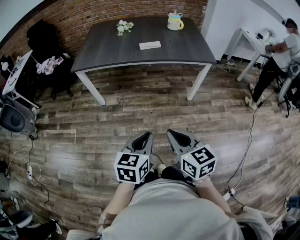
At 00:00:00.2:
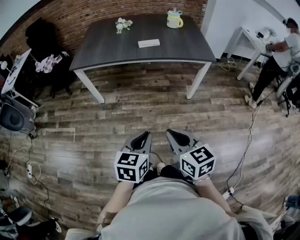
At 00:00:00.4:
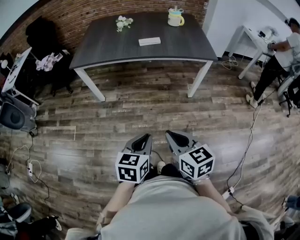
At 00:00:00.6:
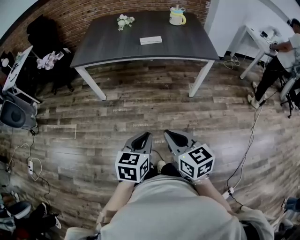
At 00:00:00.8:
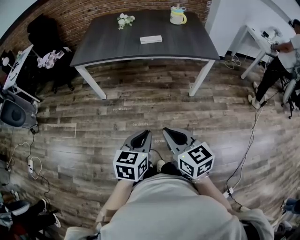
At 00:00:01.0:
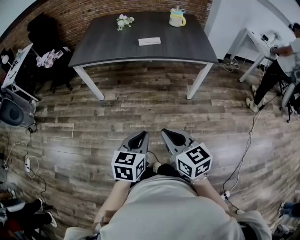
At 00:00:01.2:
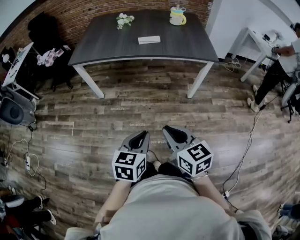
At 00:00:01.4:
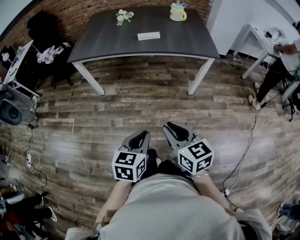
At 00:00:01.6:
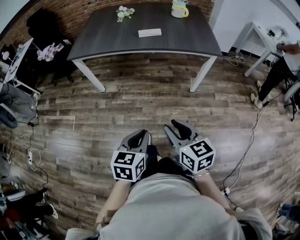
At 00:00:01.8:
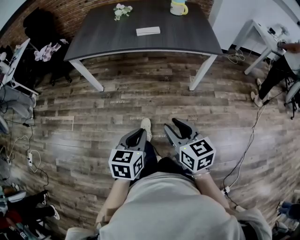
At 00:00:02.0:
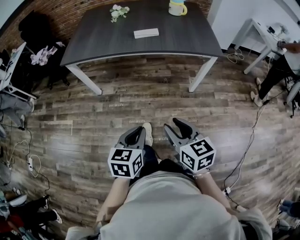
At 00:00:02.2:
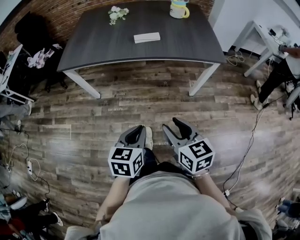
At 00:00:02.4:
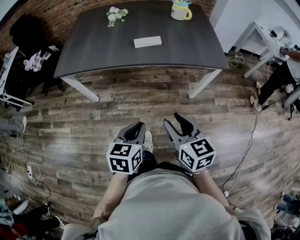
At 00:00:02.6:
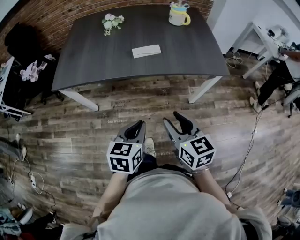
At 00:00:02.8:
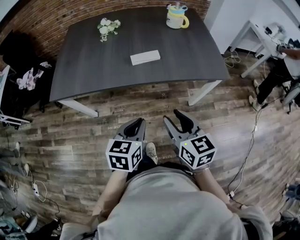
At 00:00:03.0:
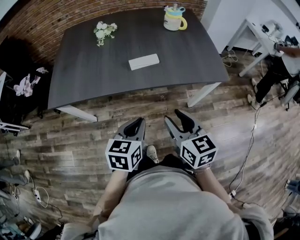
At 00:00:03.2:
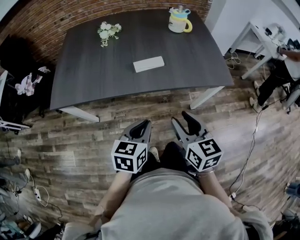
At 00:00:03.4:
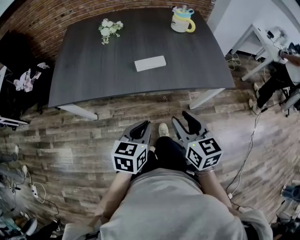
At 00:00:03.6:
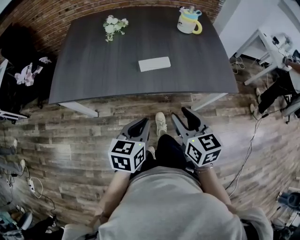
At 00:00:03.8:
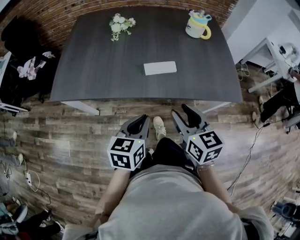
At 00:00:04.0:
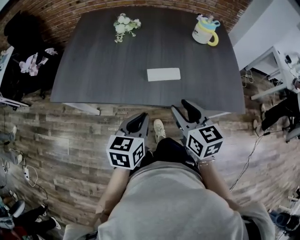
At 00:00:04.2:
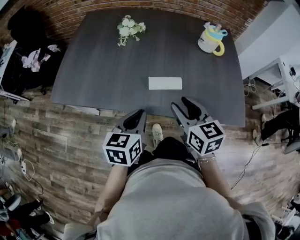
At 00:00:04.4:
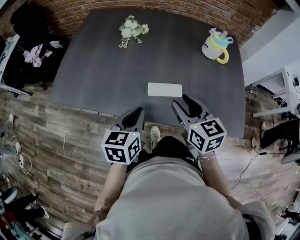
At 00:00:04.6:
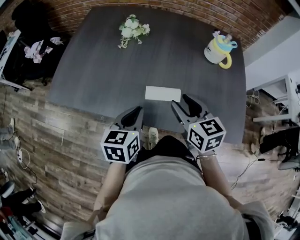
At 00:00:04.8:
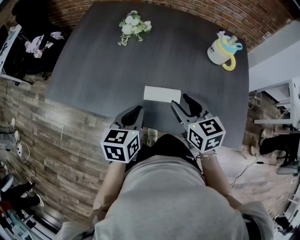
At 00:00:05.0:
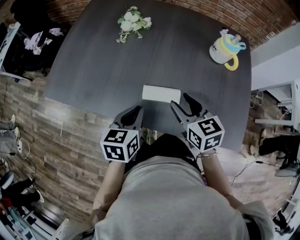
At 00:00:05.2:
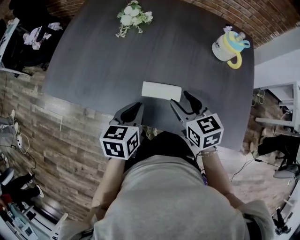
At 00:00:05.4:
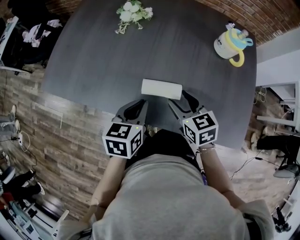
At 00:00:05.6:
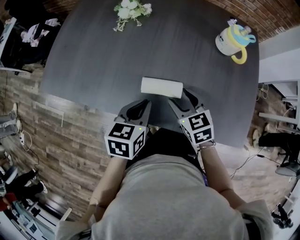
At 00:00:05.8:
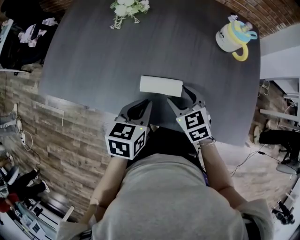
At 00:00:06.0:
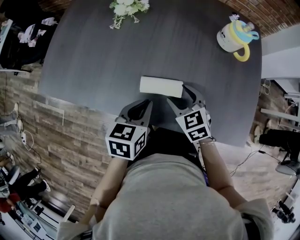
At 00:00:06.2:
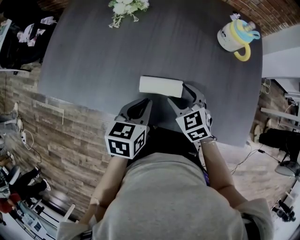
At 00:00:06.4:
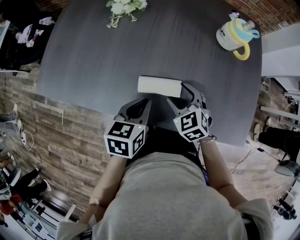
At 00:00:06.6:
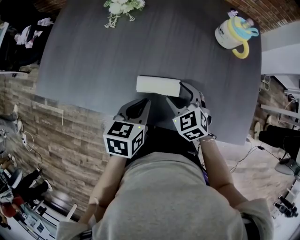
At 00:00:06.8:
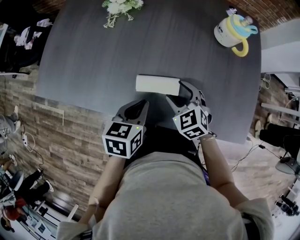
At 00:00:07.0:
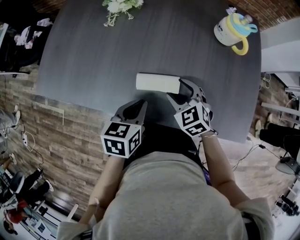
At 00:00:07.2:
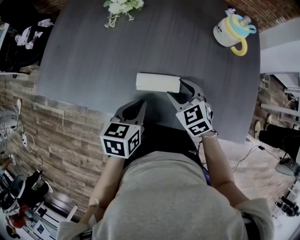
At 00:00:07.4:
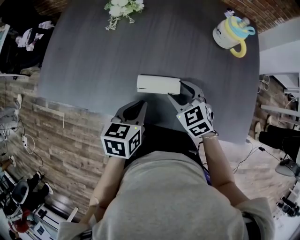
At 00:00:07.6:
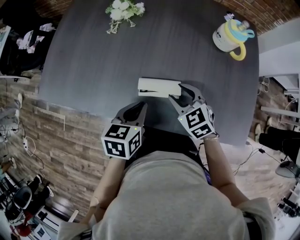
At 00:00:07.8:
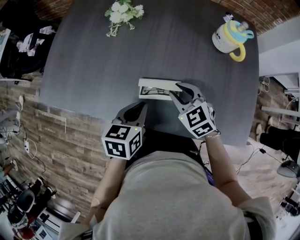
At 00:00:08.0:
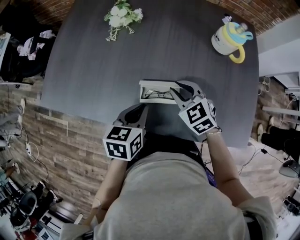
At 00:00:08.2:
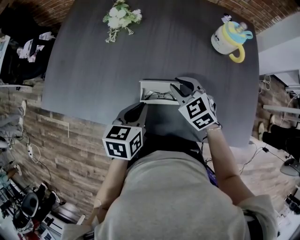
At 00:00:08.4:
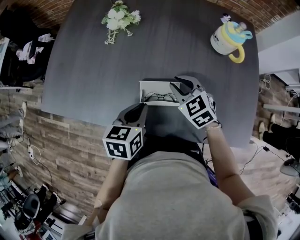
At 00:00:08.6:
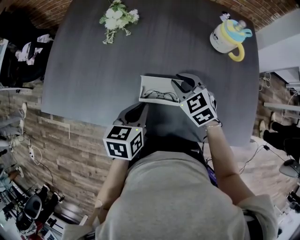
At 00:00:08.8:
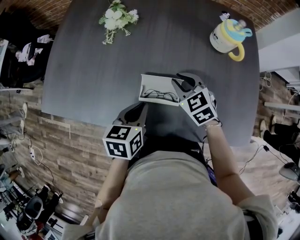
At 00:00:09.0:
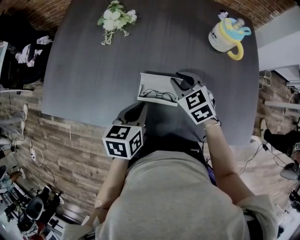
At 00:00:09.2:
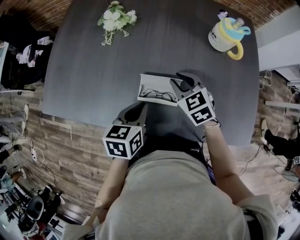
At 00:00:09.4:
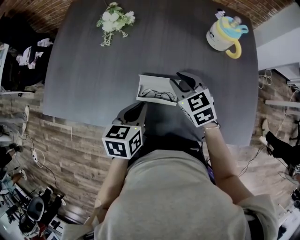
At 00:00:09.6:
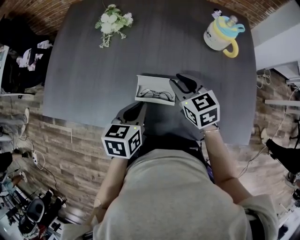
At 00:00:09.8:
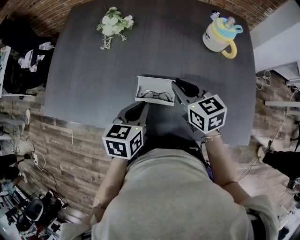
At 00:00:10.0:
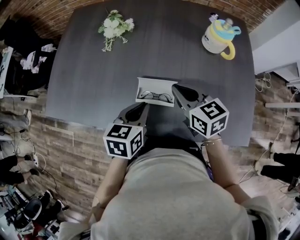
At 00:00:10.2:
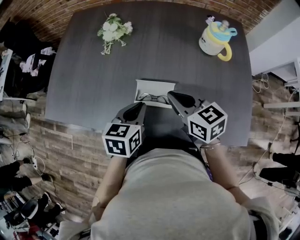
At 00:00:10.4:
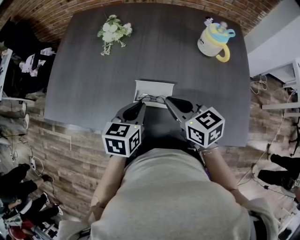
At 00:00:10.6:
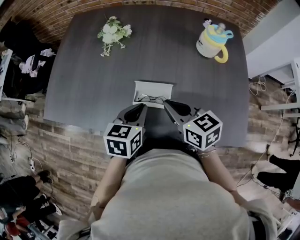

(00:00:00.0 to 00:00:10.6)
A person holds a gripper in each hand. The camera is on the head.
00:00:00.0 - 00:00:01.6: The right gripper goes roughly 5 cm to the right, and opens, while the left gripper shifts by some 5 cm.
00:00:01.6 - 00:00:03.0: Both grippers move forward, roughly 35 cm.
00:00:03.0 - 00:00:04.6: The grippers both shift forward by roughly 25 cm. The left gripper changes its angle by approximately 20 degrees. Meanwhile the right gripper turns by some 20 degrees.
00:00:04.6 - 00:00:06.0: The right gripper travels downward by some 15 cm, and changes its angle by about 30 degrees, while the left gripper heads to the right and downward, covering approximately 10 cm.
00:00:06.0 - 00:00:07.6: The grippers stay close to where they were, moving slightly.
00:00:07.6 - 00:00:09.0: The right gripper goes about 10 cm forward, and closes its fingers.
00:00:09.0 - 00:00:10.6: The right gripper travels backward and upward by approximately 10 cm, and changes its angle by approximately 30 degrees.

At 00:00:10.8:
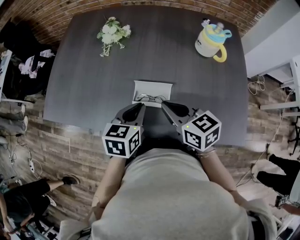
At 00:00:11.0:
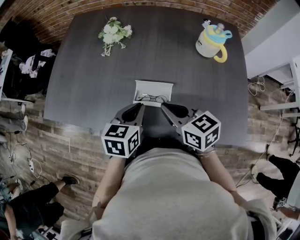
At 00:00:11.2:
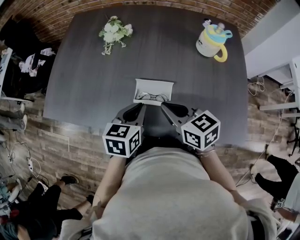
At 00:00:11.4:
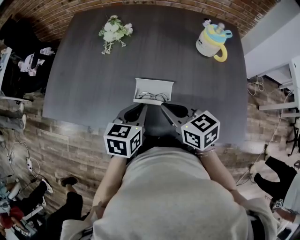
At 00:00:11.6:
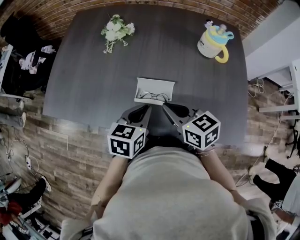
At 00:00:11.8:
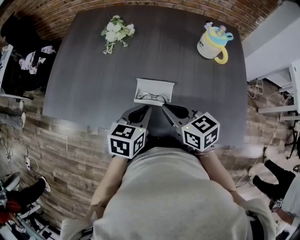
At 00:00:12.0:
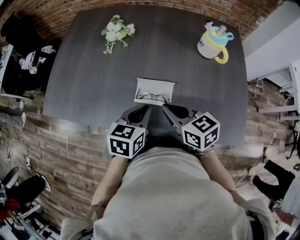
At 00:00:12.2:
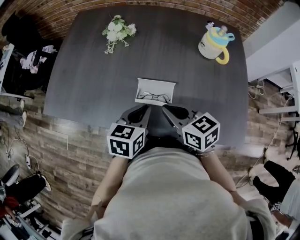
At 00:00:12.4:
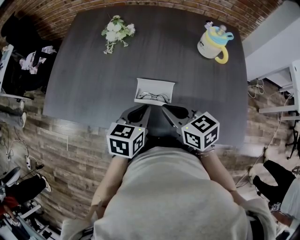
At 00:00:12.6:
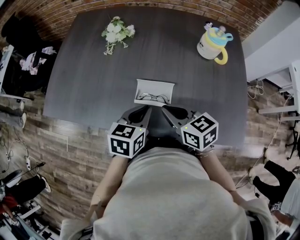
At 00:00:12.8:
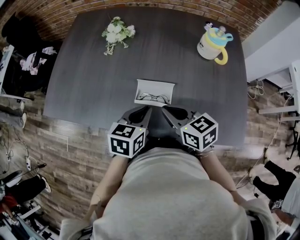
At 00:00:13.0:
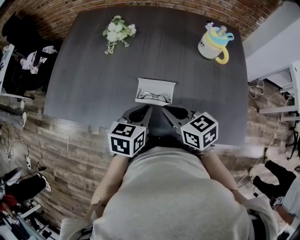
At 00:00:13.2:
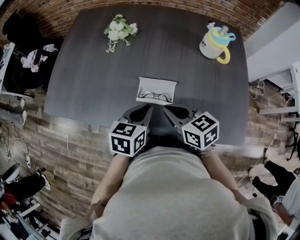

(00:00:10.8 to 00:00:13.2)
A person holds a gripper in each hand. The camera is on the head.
00:00:10.8 - 00:00:12.0: The grippers stay close to where they were, moving slightly.
00:00:12.0 - 00:00:13.2: Neither gripper changes place.

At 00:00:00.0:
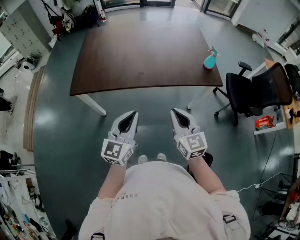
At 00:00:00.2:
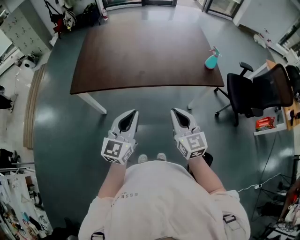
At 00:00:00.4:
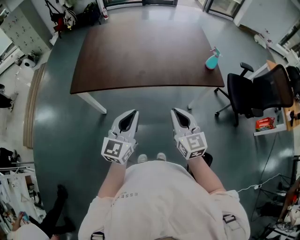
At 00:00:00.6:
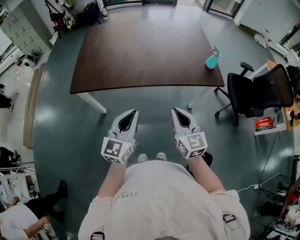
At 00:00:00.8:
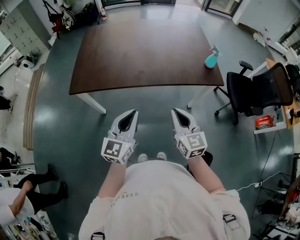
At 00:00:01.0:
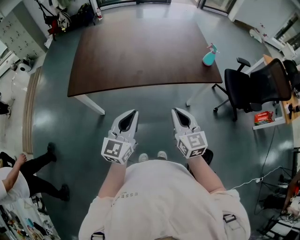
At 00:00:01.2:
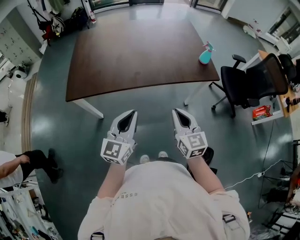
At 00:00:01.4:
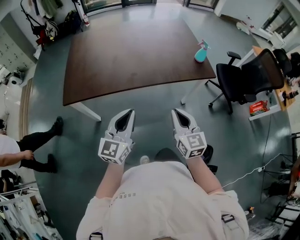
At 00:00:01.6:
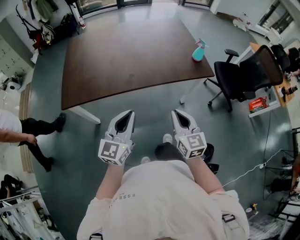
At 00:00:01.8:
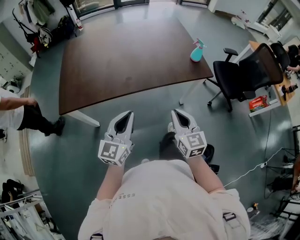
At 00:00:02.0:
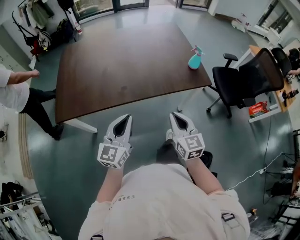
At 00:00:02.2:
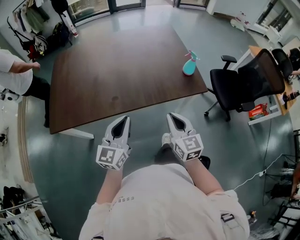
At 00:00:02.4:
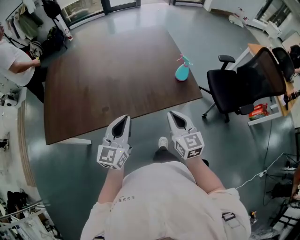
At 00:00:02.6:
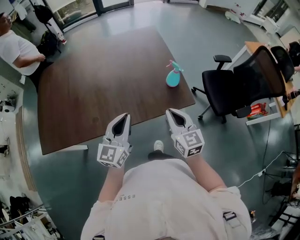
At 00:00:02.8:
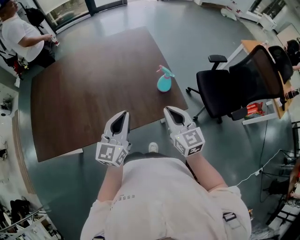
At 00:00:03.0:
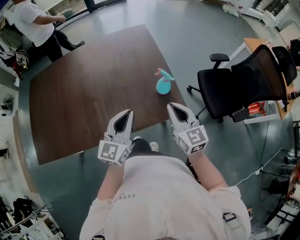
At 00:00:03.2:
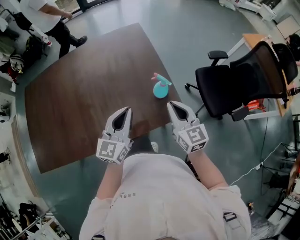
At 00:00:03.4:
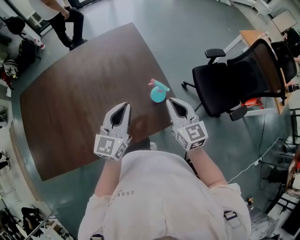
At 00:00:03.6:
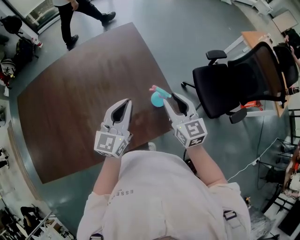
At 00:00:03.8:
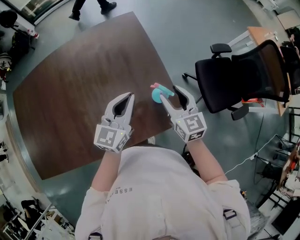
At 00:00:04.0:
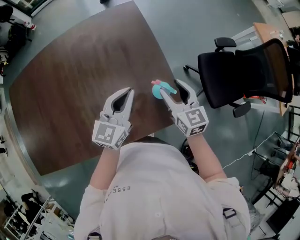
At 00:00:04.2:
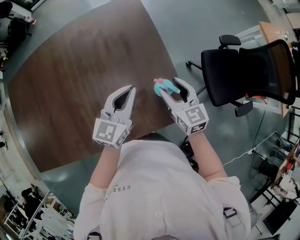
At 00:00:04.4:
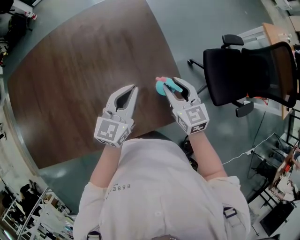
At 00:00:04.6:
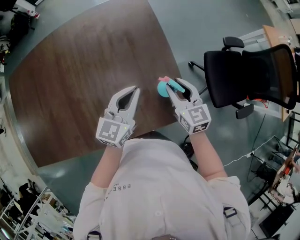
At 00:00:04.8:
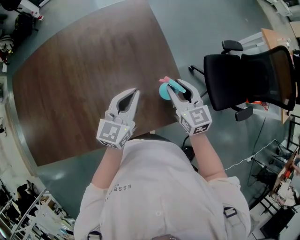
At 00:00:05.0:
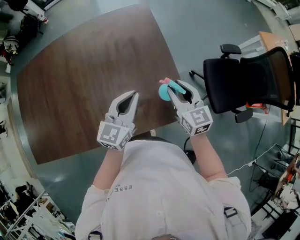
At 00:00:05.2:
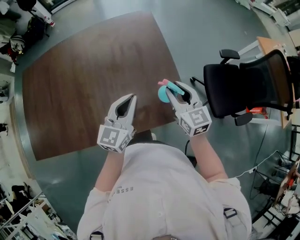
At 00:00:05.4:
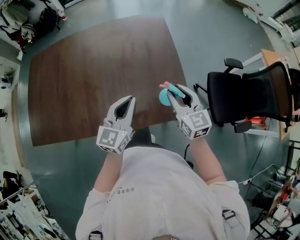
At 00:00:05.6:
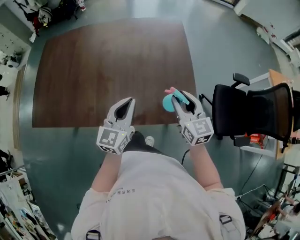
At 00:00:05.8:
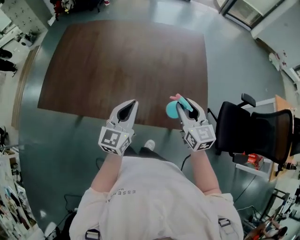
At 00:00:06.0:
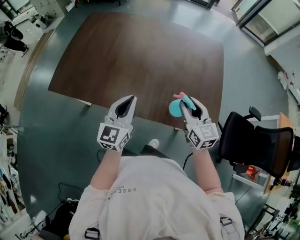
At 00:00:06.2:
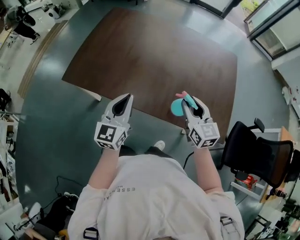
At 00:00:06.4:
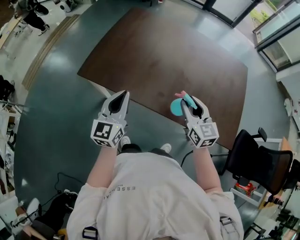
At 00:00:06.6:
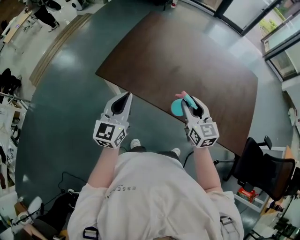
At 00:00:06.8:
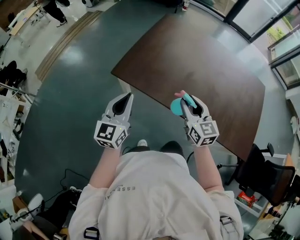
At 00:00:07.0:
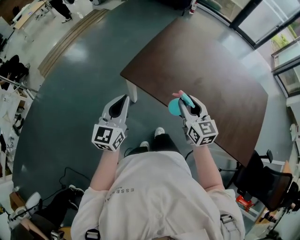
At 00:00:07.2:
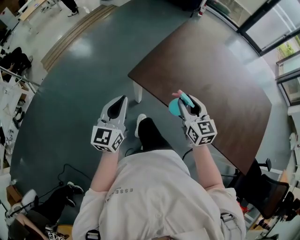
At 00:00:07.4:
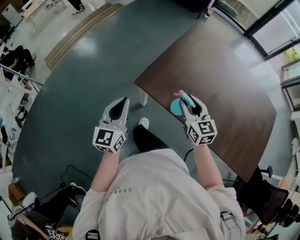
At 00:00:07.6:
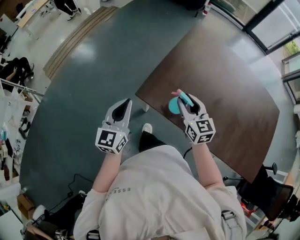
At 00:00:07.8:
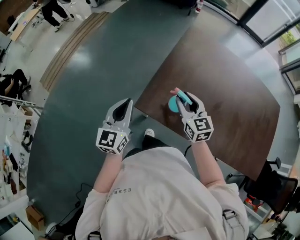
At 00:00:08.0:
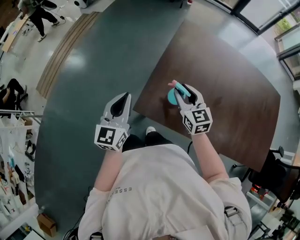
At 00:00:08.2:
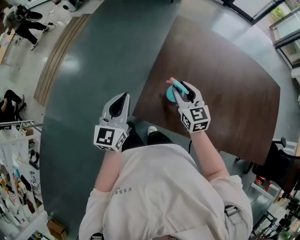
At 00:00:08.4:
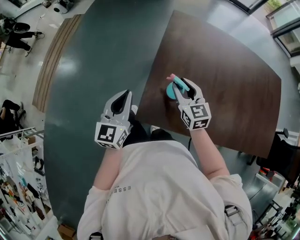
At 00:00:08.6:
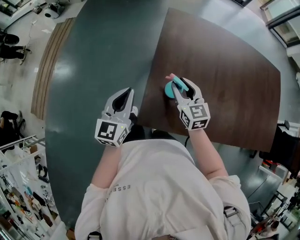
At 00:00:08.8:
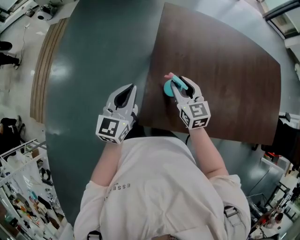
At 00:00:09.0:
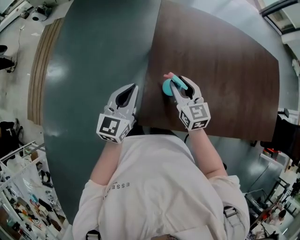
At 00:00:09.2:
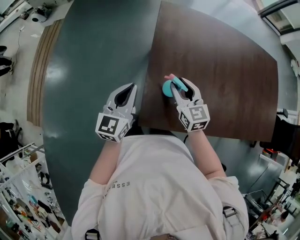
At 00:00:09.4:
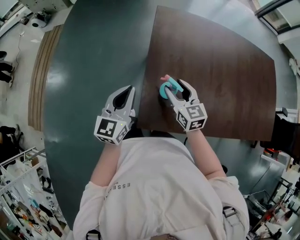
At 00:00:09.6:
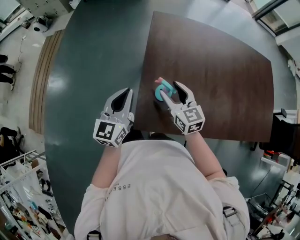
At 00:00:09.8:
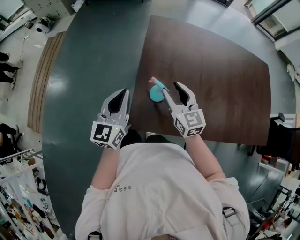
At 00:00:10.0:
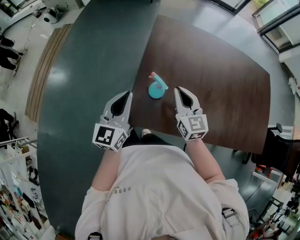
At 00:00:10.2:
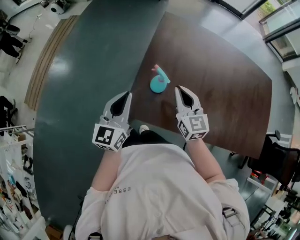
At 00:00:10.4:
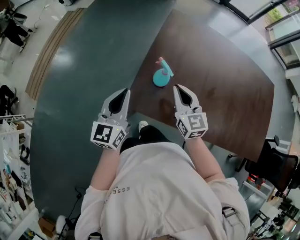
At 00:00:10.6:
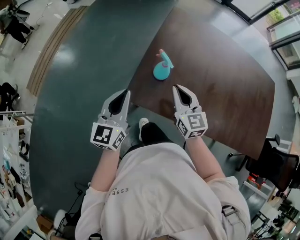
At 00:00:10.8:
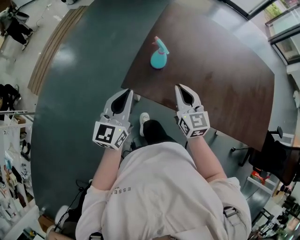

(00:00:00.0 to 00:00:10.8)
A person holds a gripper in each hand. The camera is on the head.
00:00:00.0 - 00:00:01.6: The grippers move only a little.
00:00:01.6 - 00:00:03.0: The pair of grippers is taken forward and to the right, some 40 cm.
00:00:03.0 - 00:00:04.6: Both grippers travel together forward and downward, approximately 20 cm. The right gripper opens.
00:00:04.6 - 00:00:06.2: The left gripper moves roughly 40 cm, and swivels about 50 degrees. Meanwhile the right gripper moves about 35 cm, and changes its angle by approximately 30 degrees.
00:00:06.2 - 00:00:07.8: The two grippers travel together, to the left and forward, roughly 50 cm.
00:00:07.8 - 00:00:09.2: The right gripper is displaced forward and downward by about 10 cm, and turns by roughly 20 degrees. Meanwhile the left gripper heads forward, covering approximately 15 cm, and changes its angle by about 30 degrees.
00:00:09.2 - 00:00:10.8: The grippers both shift backward by some 20 cm. The right gripper closes up.
